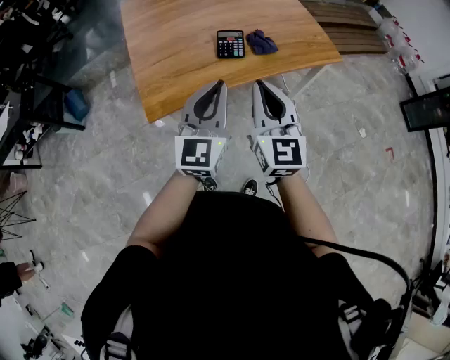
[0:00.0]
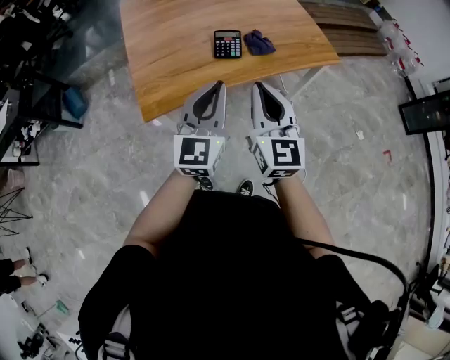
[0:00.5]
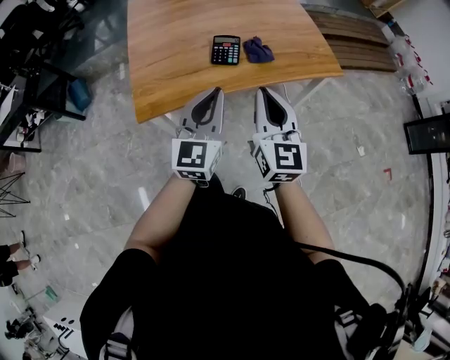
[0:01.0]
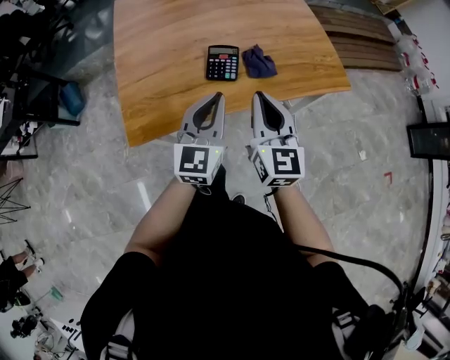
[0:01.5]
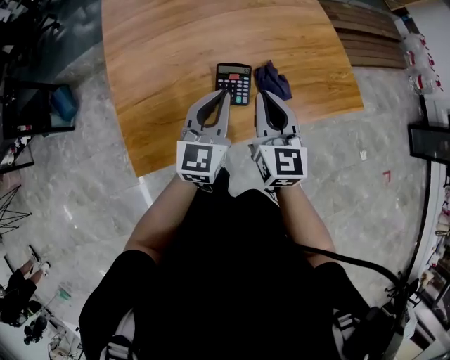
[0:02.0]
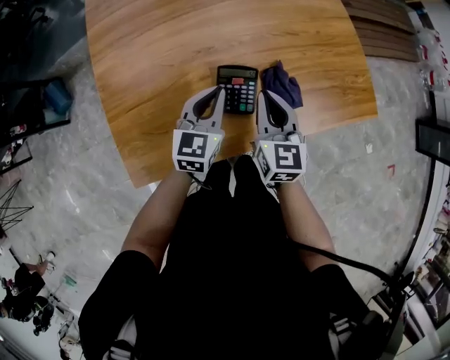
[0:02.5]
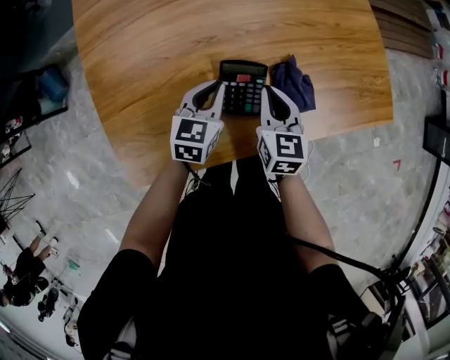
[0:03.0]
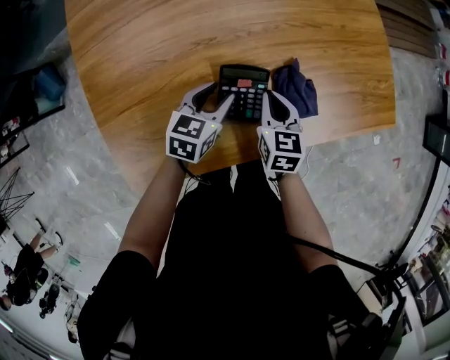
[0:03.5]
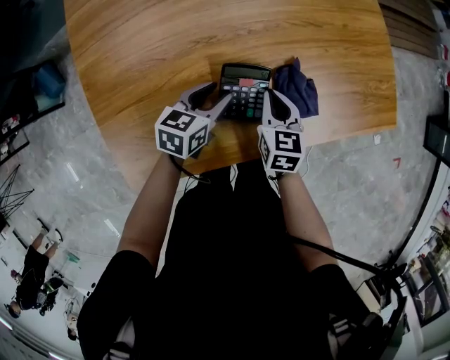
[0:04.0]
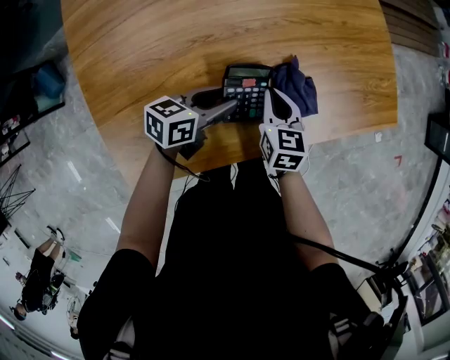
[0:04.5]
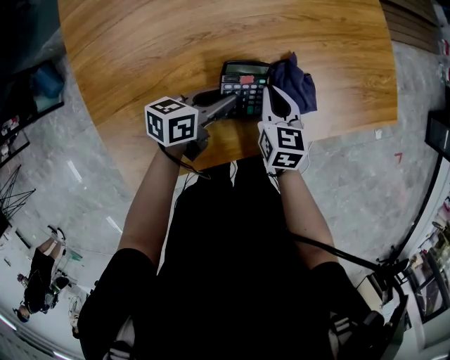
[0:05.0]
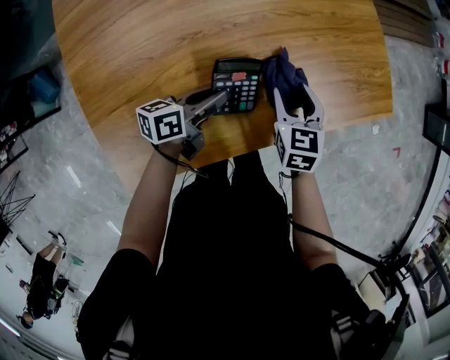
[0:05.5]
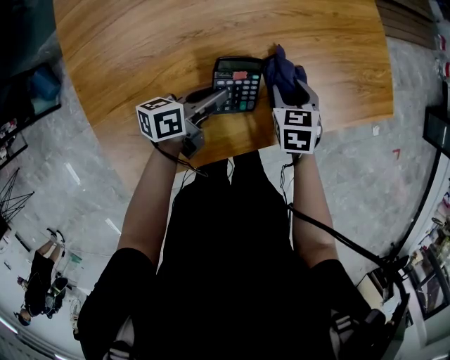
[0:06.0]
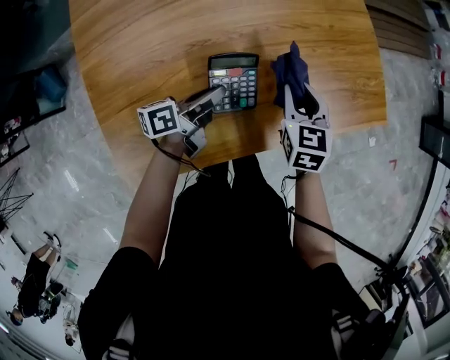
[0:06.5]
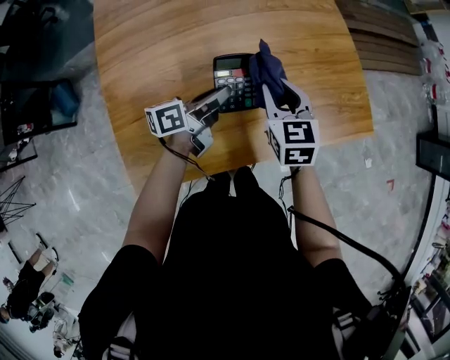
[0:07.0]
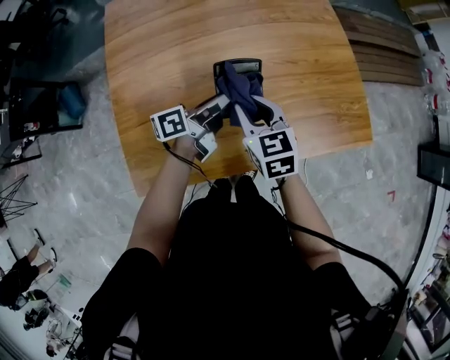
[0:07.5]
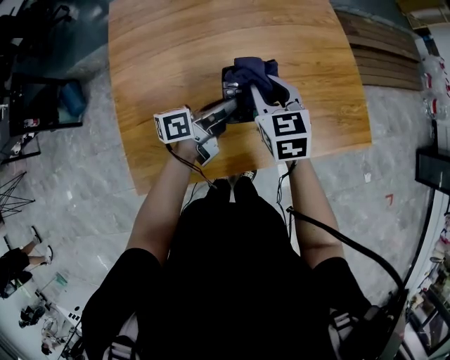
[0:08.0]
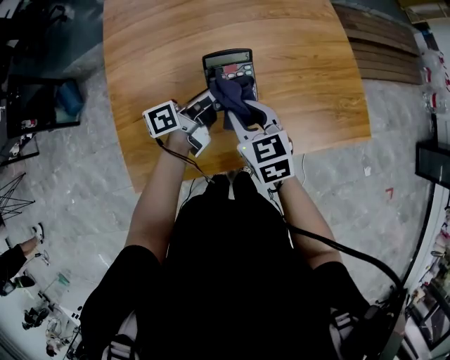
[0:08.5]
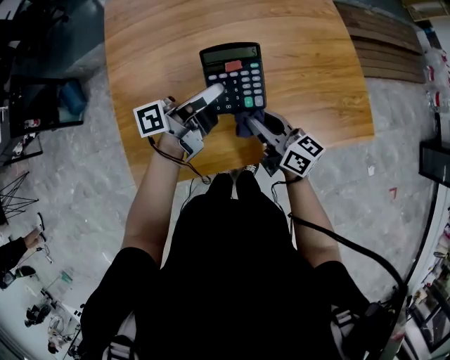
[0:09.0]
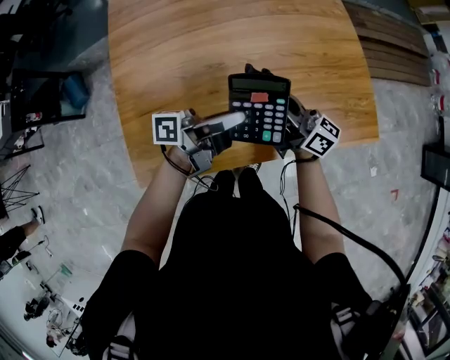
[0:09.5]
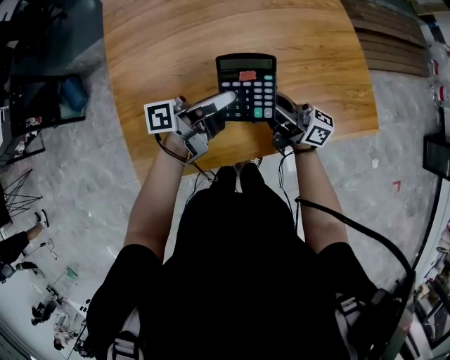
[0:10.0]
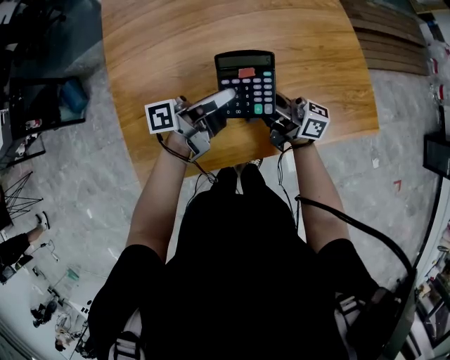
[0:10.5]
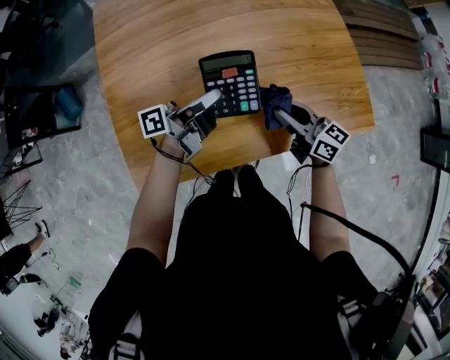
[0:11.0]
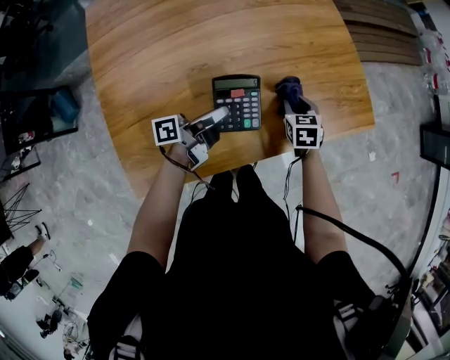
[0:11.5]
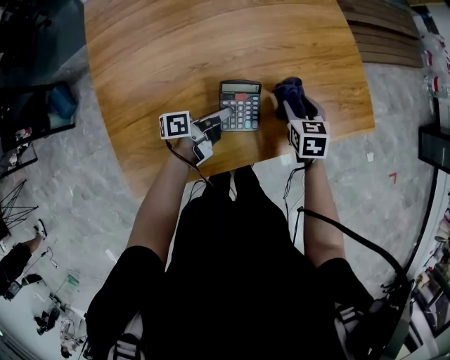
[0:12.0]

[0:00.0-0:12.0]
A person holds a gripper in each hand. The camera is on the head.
0:00.0 to 0:02.0: The two grippers go about 30 cm forward.
0:02.0 to 0:04.0: Both grippers travel together downward and forward, about 30 cm. The right gripper angles its fingers downward, by approximately 30 degrees; the left gripper turns by some 40 degrees, and opens its fingers.
0:04.0 to 0:06.0: The left gripper changes its angle by about 30 degrees; the right gripper heads to the right, covering about 5 cm, and opens its fingers.
0:06.0 to 0:08.0: The left gripper shifts about 15 cm upward, while the right gripper moves upward and to the left, roughly 25 cm, turns by approximately 30 degrees, and closes.
0:08.0 to 0:10.0: The right gripper changes place by about 5 cm, and angles its fingers upward, by approximately 50 degrees.
0:10.0 to 0:12.0: Both grippers move downward, roughly 15 cm. The left gripper swivels roughly 20 degrees; the right gripper angles its fingers downward, by roughly 70 degrees.

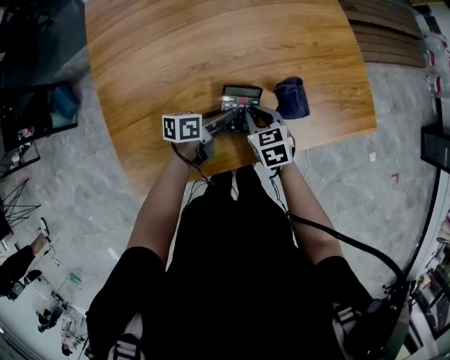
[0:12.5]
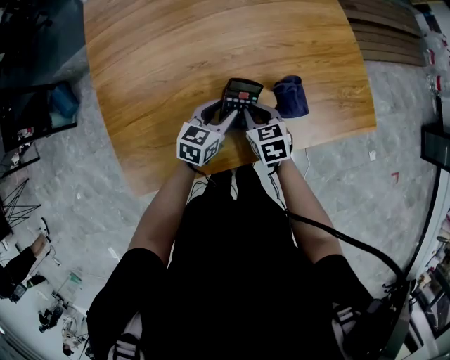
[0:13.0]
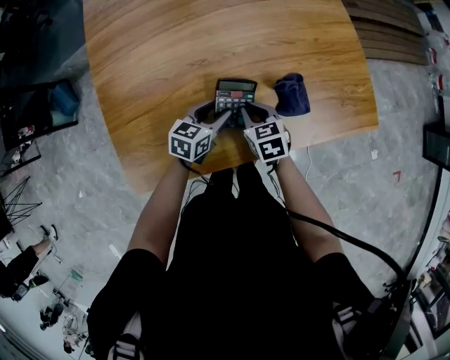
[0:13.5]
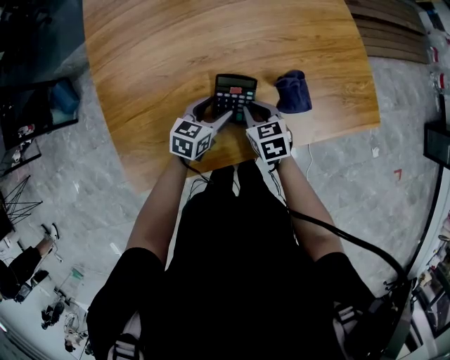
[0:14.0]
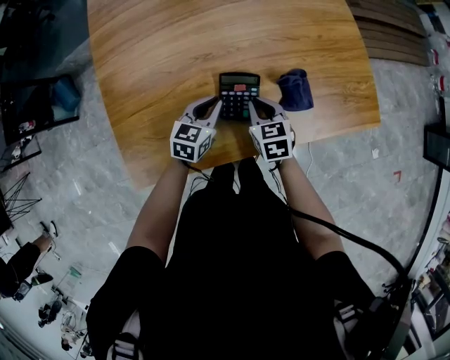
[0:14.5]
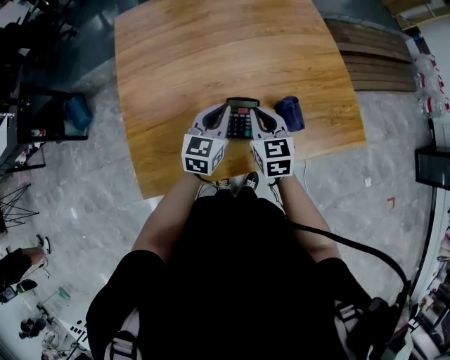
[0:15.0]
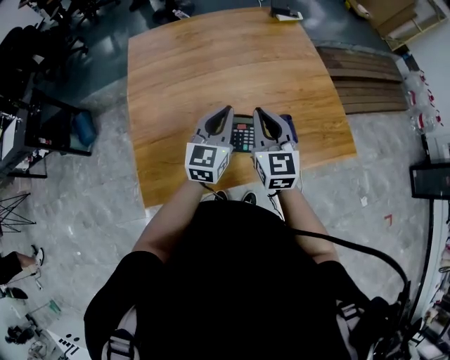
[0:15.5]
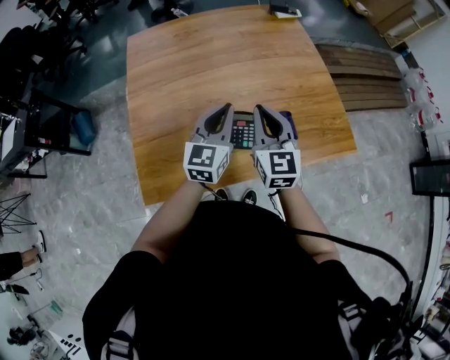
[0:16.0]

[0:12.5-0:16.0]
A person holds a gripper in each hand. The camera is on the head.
0:12.5 to 0:14.5: The left gripper changes its angle by some 50 degrees, and opens, then closes once more.
0:14.5 to 0:16.0: Both grippers travel together upward, about 30 cm. The left gripper changes its angle by some 30 degrees. The right gripper points its fingers some 40 degrees further upward.

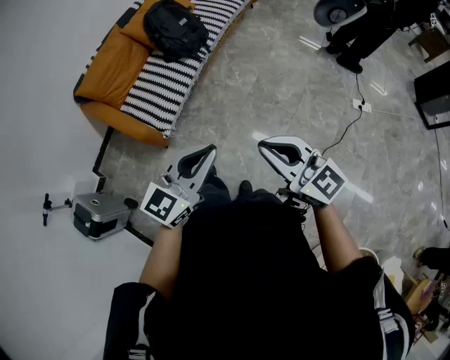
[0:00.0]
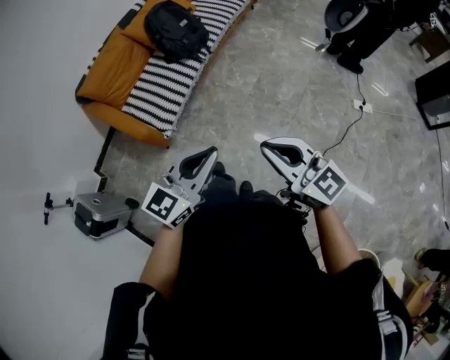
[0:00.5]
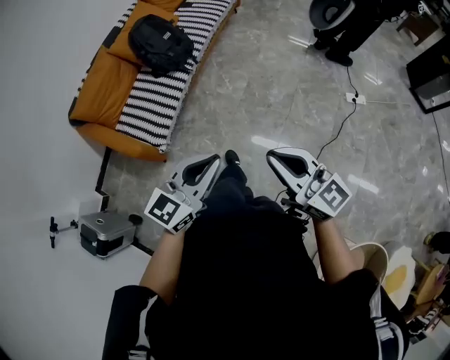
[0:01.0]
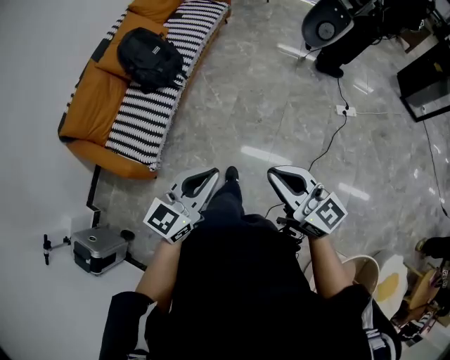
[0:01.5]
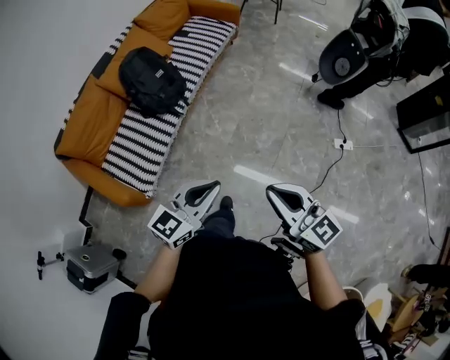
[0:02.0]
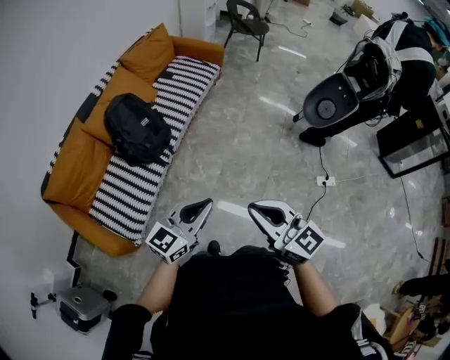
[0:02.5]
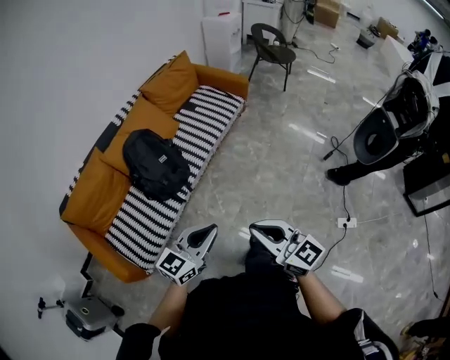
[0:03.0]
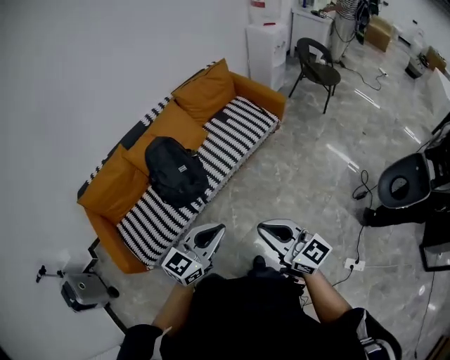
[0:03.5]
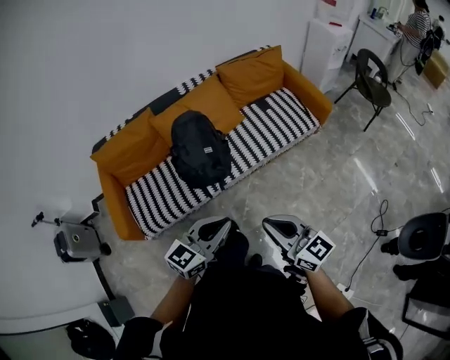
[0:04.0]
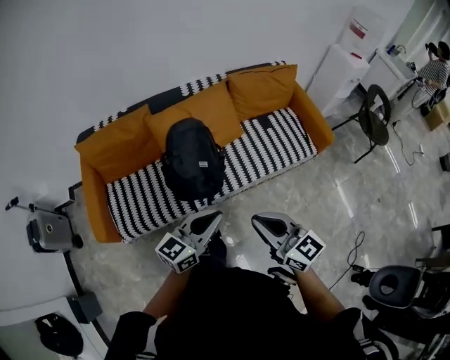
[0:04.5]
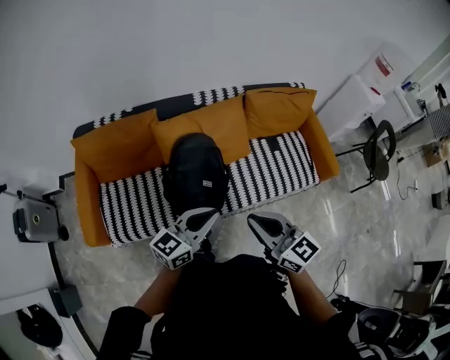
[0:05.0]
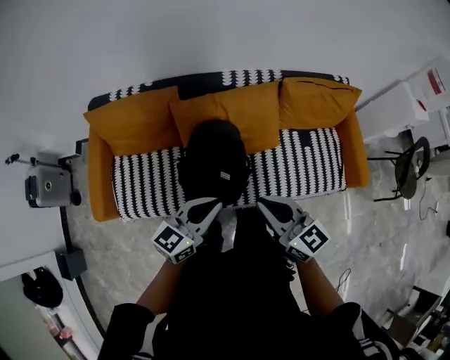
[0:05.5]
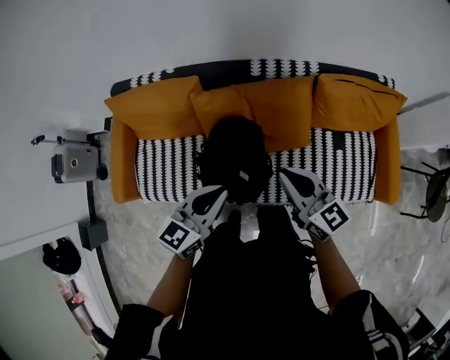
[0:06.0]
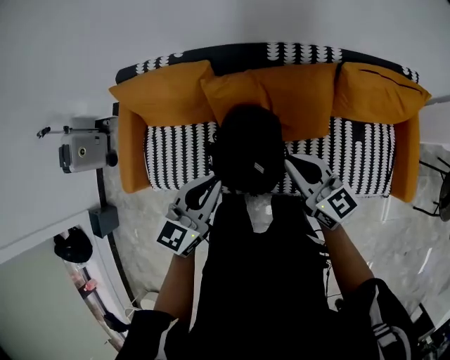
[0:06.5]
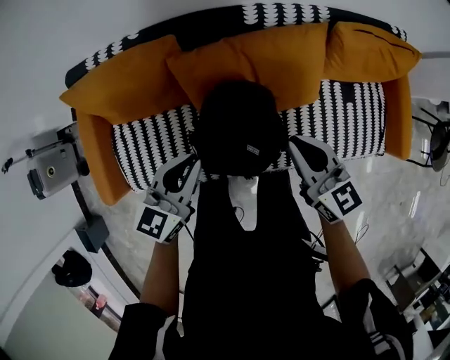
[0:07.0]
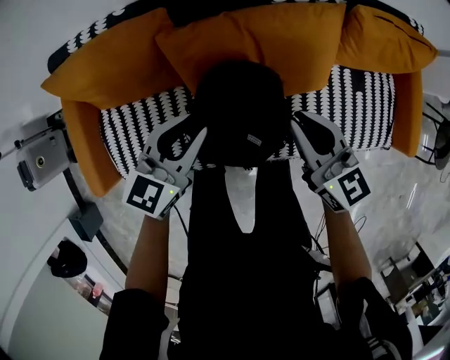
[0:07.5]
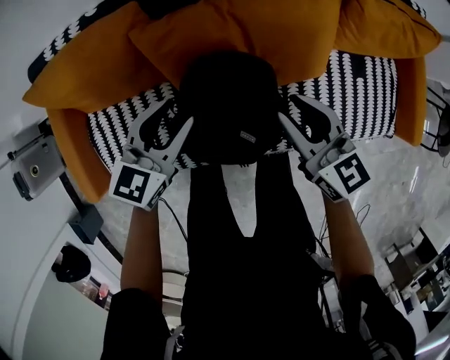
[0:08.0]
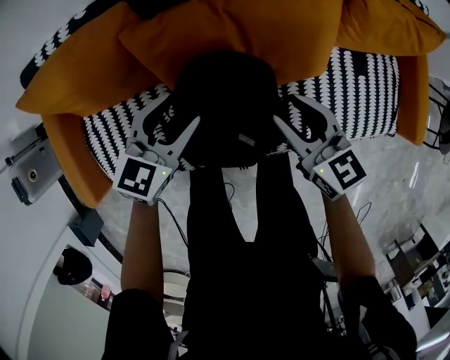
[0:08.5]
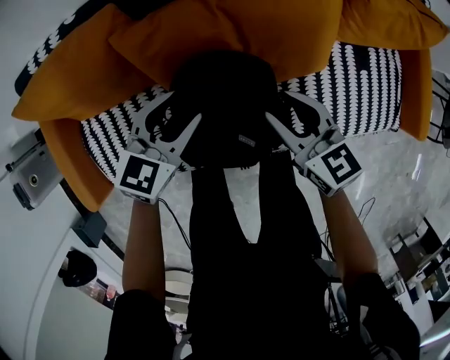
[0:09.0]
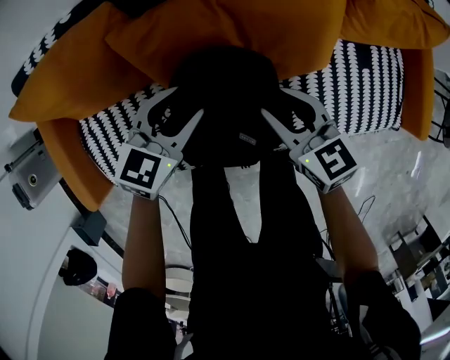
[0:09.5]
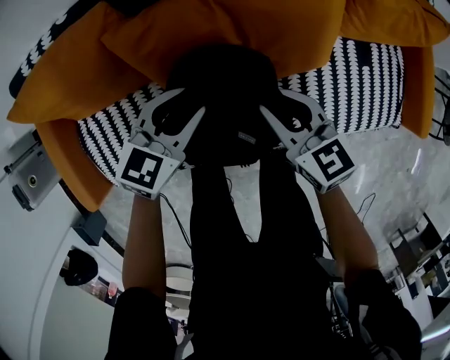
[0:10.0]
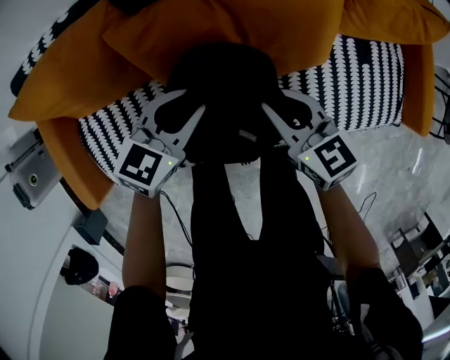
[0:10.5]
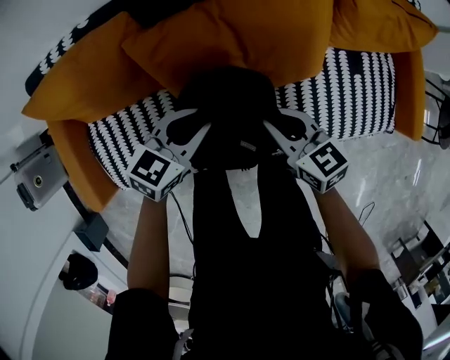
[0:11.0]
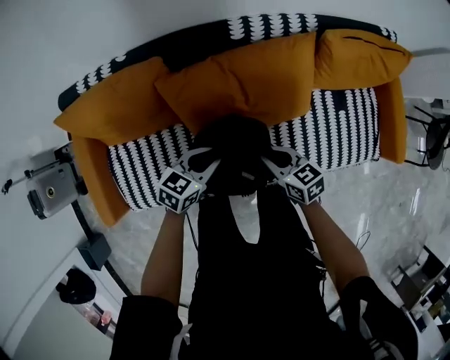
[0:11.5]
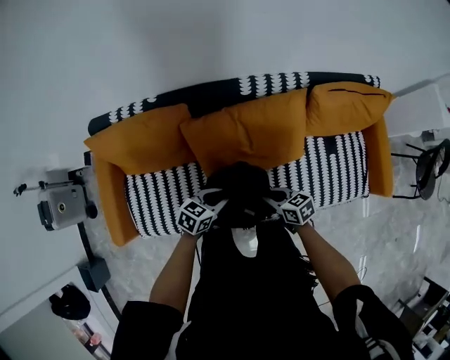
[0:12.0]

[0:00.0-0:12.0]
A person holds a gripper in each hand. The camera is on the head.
0:00.0 to 0:02.0: The right gripper moves forward and to the right, approximately 20 cm, while the left gripper heads forward, covering approximately 20 cm.
0:02.0 to 0:04.0: Both grippers are carried approximately 40 cm. The right gripper rotates approximately 40 degrees. The left gripper rotates some 40 degrees.
0:04.0 to 0:06.0: Both grippers are carried some 50 cm. The right gripper rotates about 20 degrees; the left gripper changes its angle by approximately 40 degrees.
0:06.0 to 0:08.0: The left gripper heads downward, forward and to the left, covering about 25 cm, and opens its fingers, while the right gripper shifts about 20 cm downward and forward, and opens its fingers.
0:08.0 to 0:10.0: The right gripper shifts some 10 cm downward. Meanwhile the left gripper moves downward and to the right, roughly 10 cm.
0:10.0 to 0:12.0: The left gripper shifts by roughly 10 cm, while the right gripper shifts by about 10 cm, and swivels roughly 20 degrees.
